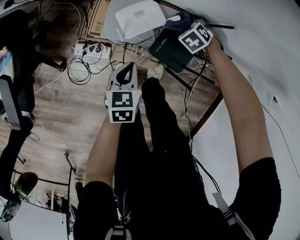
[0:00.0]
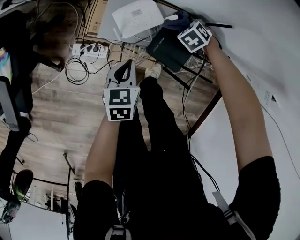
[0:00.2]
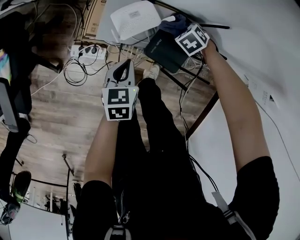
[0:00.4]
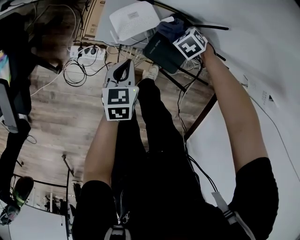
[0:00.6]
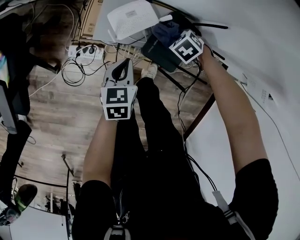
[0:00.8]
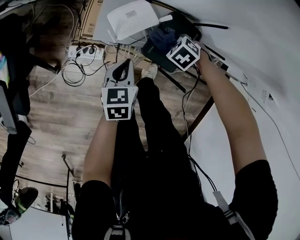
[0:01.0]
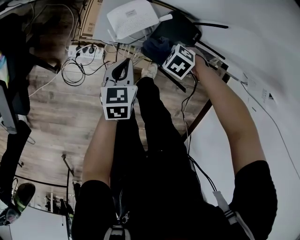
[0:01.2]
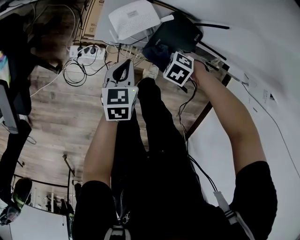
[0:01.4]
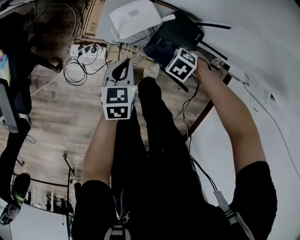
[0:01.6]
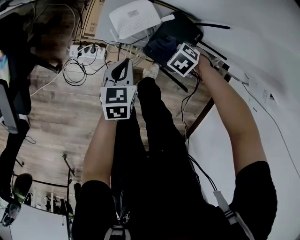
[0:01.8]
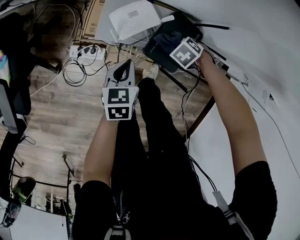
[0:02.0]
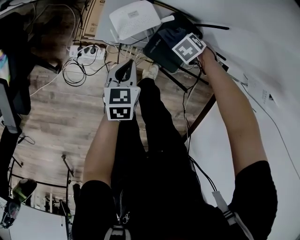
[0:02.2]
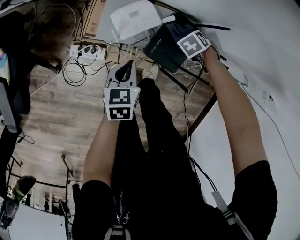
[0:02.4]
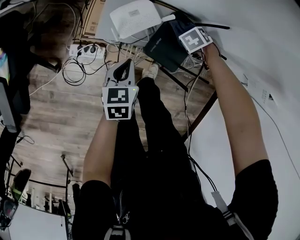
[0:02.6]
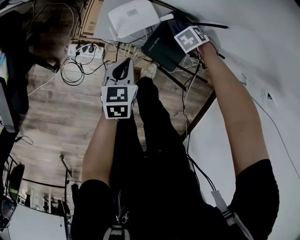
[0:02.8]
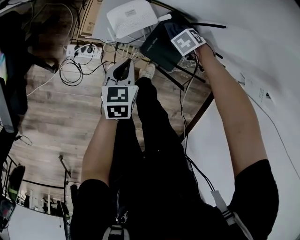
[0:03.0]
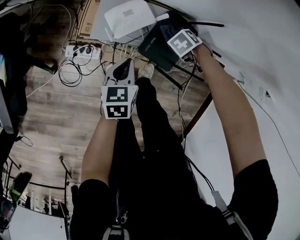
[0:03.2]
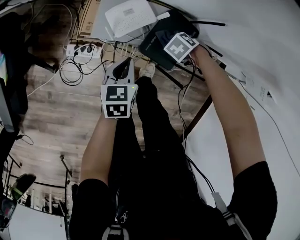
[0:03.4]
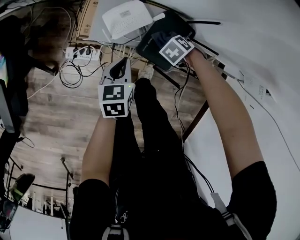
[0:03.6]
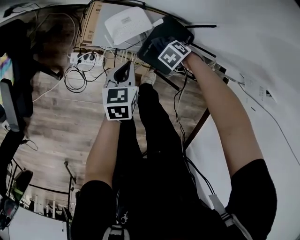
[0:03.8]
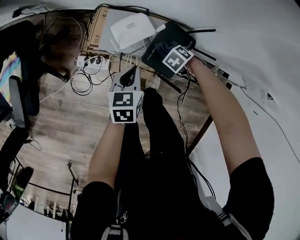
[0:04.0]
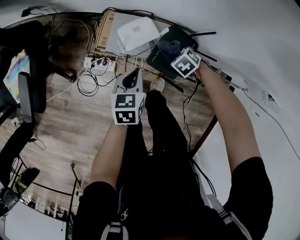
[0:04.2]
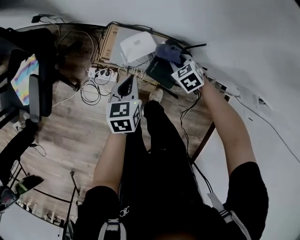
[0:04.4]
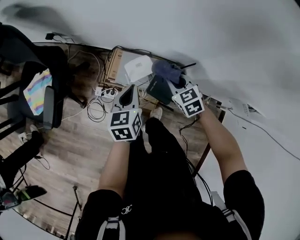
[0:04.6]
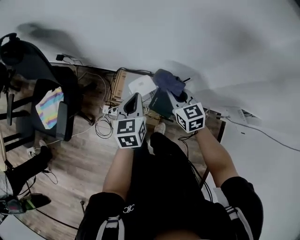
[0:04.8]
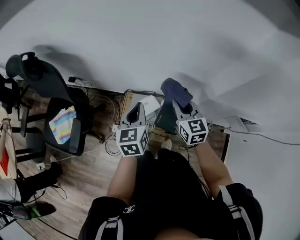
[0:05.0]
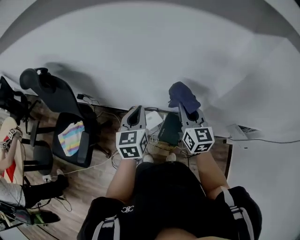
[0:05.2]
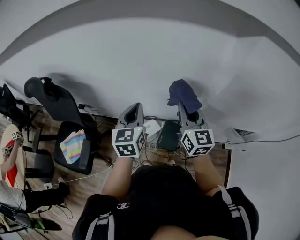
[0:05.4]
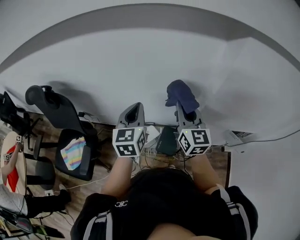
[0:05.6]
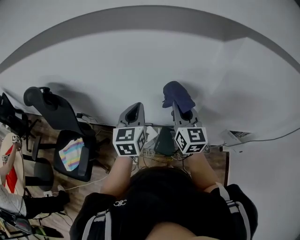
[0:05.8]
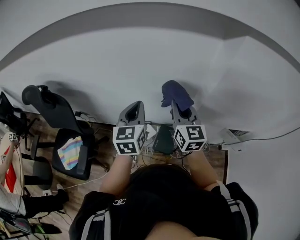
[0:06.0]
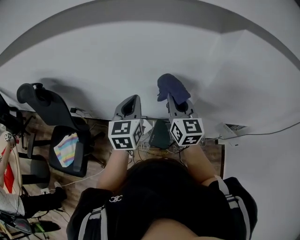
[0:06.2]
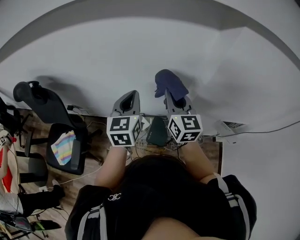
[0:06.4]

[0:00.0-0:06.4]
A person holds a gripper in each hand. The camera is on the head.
0:00.0 to 0:01.6: The right gripper ends up some 15 cm from where it was, and swivels roughly 20 degrees.
0:01.6 to 0:03.2: The right gripper changes place by some 10 cm, and swivels approximately 20 degrees.
0:03.2 to 0:04.8: The grippers both shift upward by some 40 cm. The left gripper swivels about 20 degrees, while the right gripper angles its fingers upward, by some 40 degrees.
0:04.8 to 0:06.4: The grippers both shift upward by approximately 30 cm. The left gripper rotates approximately 30 degrees. Meanwhile the right gripper tilts its fingers some 30 degrees upward.

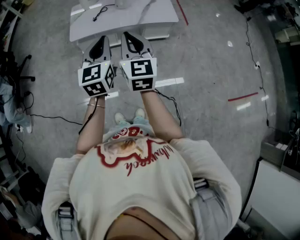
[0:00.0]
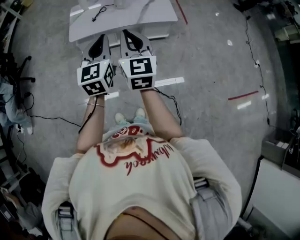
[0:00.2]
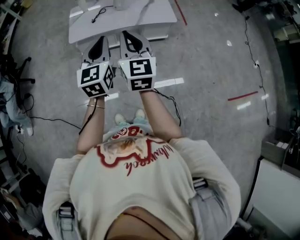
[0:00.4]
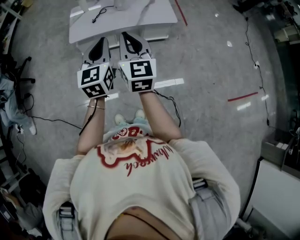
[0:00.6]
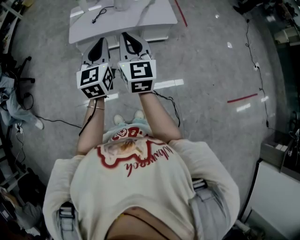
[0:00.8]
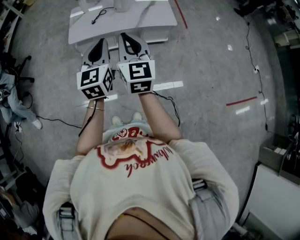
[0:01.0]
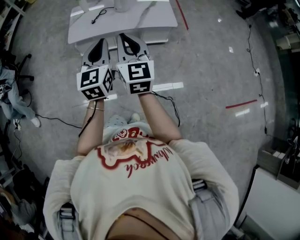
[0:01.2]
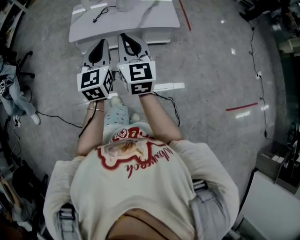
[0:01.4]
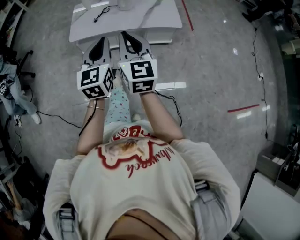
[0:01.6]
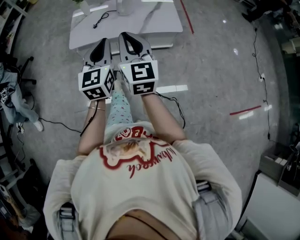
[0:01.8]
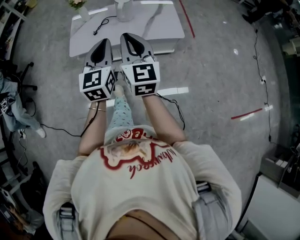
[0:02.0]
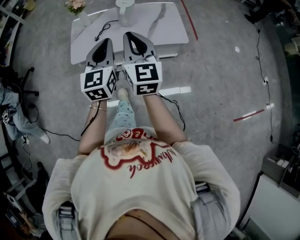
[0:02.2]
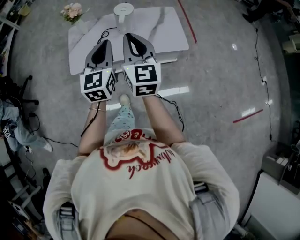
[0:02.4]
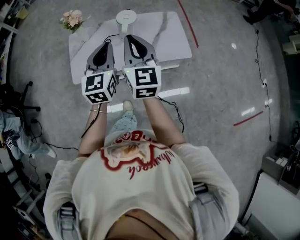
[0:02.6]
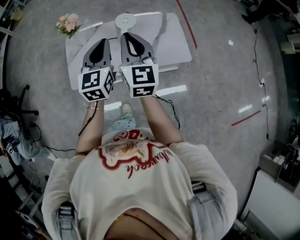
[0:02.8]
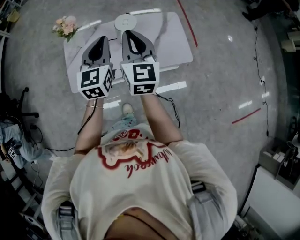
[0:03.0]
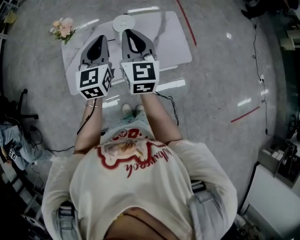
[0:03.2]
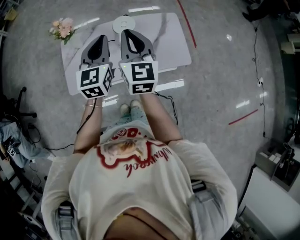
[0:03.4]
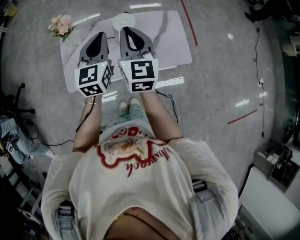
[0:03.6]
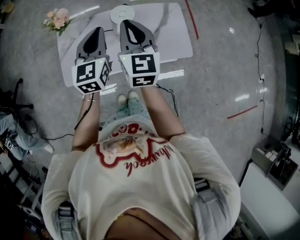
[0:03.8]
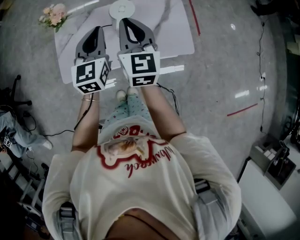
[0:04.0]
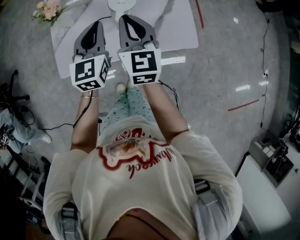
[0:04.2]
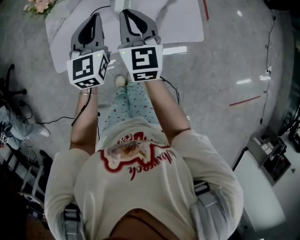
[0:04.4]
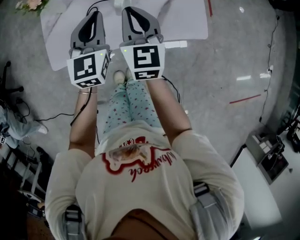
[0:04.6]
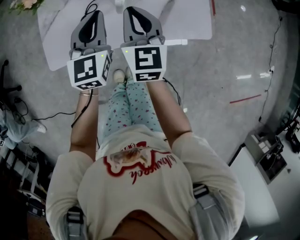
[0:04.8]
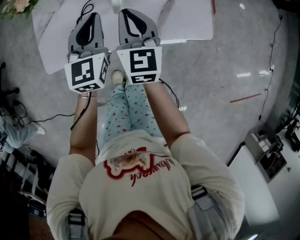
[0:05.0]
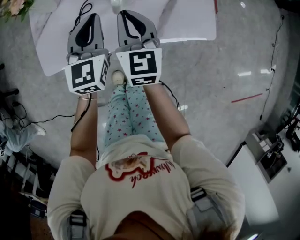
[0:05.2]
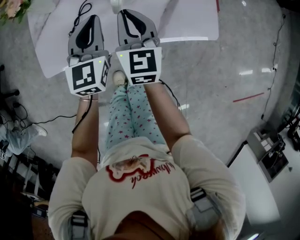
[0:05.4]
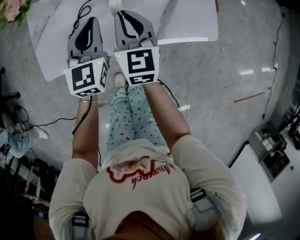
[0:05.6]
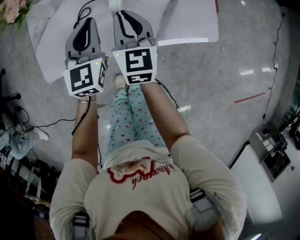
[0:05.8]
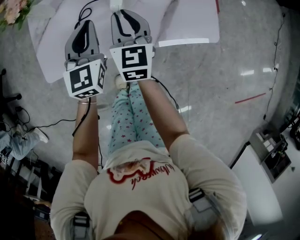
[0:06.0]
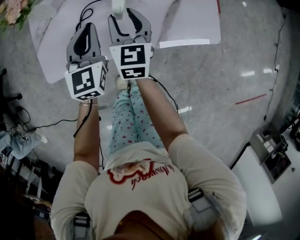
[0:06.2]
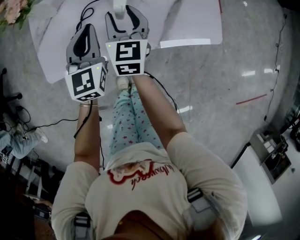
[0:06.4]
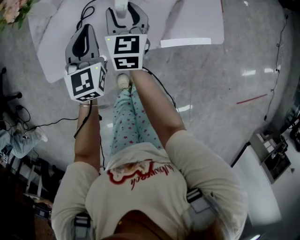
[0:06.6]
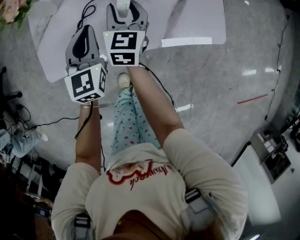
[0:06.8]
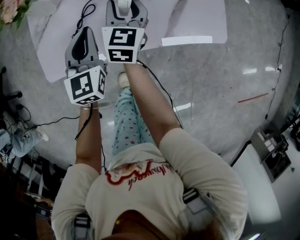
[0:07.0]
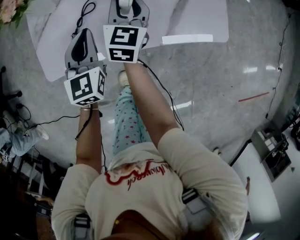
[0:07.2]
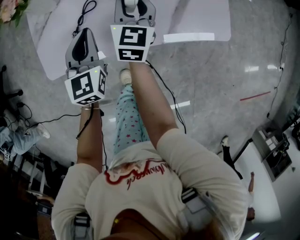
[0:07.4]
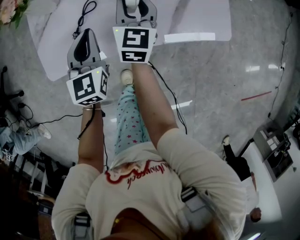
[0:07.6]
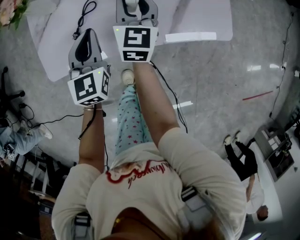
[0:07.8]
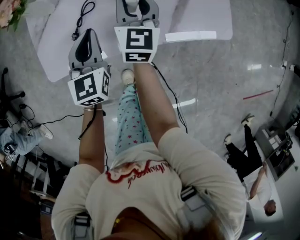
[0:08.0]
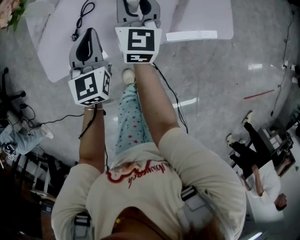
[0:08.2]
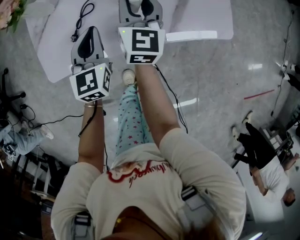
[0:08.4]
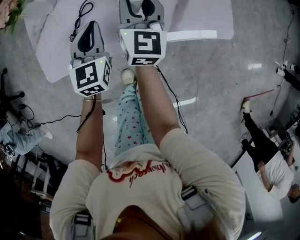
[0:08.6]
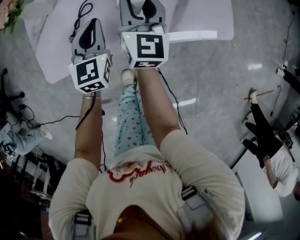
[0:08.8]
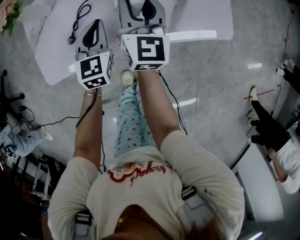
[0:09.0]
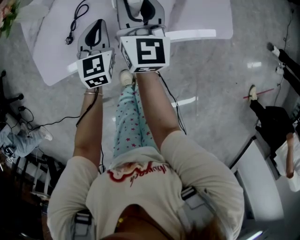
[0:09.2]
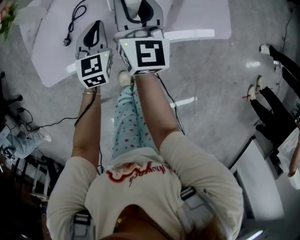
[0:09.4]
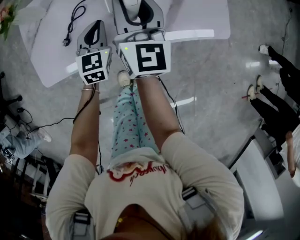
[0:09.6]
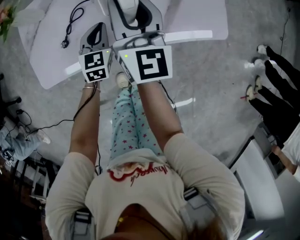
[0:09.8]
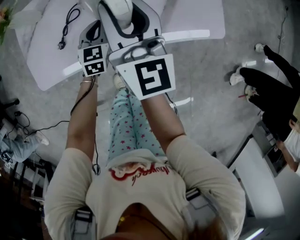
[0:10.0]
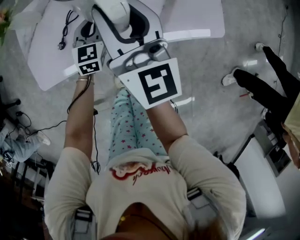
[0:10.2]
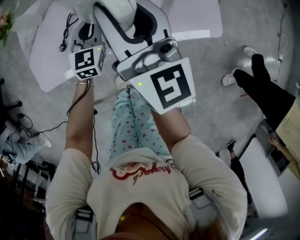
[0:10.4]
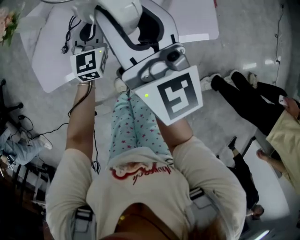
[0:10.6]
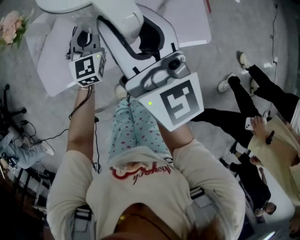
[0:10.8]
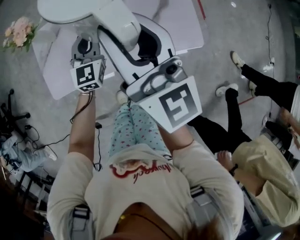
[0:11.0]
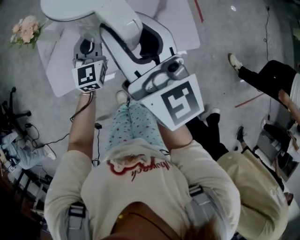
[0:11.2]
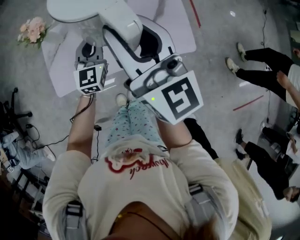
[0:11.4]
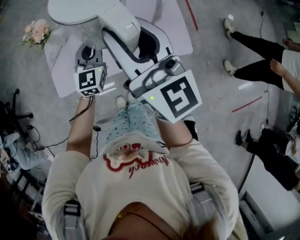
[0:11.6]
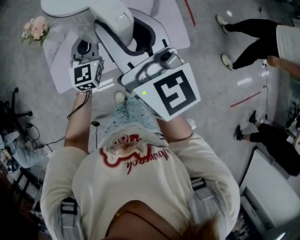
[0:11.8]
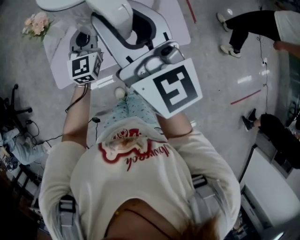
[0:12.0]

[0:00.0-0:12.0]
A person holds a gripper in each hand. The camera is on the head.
0:00.0 to 0:01.6: The right gripper changes place by roughly 5 cm, while the left gripper shifts by approximately 5 cm.
0:01.6 to 0:03.0: The pair of grippers is taken forward, roughly 40 cm.
0:03.0 to 0:04.4: Both grippers travel together downward and forward, approximately 15 cm.
0:04.4 to 0:06.0: Both grippers move downward, approximately 15 cm.
0:06.0 to 0:07.6: The right gripper shifts by about 5 cm. Meanwhile the left gripper changes place by about 5 cm.
0:07.6 to 0:09.0: The left gripper moves downward, about 5 cm.
0:09.0 to 0:10.4: The right gripper travels upward by roughly 15 cm; the left gripper goes downward and returns, approximately 10 cm each way.
0:10.4 to 0:12.0: Both grippers travel together upward, about 30 cm.

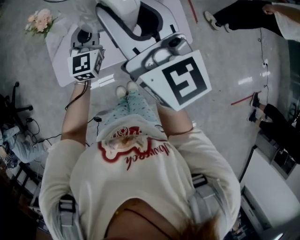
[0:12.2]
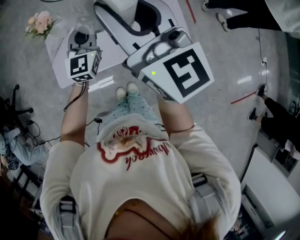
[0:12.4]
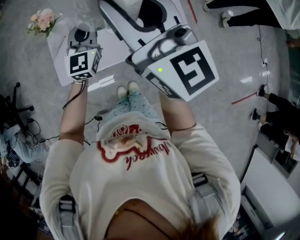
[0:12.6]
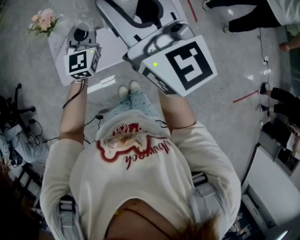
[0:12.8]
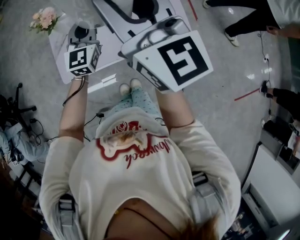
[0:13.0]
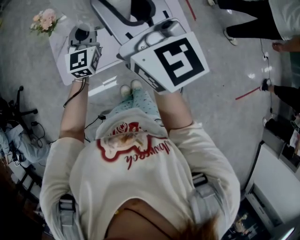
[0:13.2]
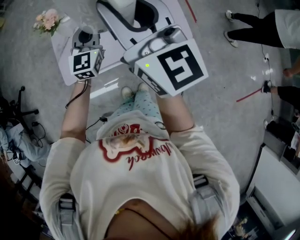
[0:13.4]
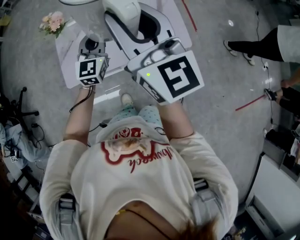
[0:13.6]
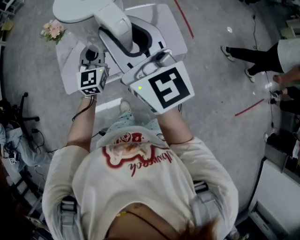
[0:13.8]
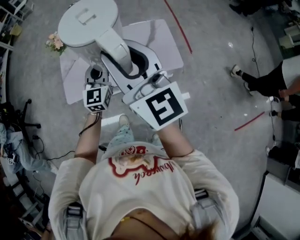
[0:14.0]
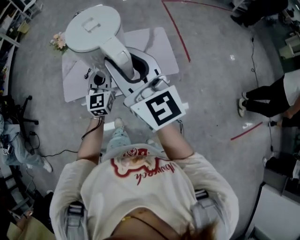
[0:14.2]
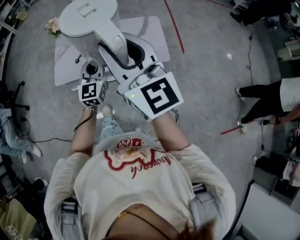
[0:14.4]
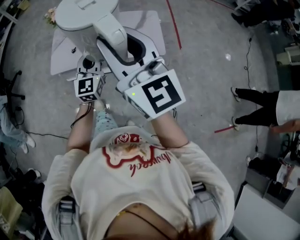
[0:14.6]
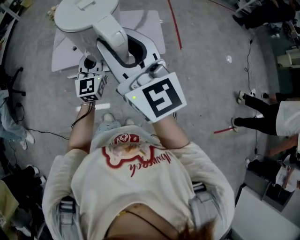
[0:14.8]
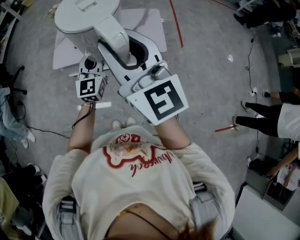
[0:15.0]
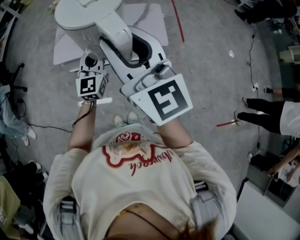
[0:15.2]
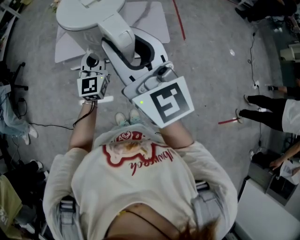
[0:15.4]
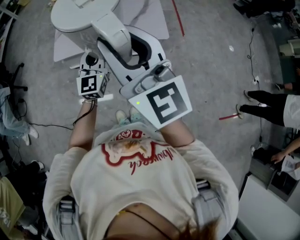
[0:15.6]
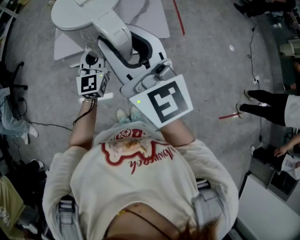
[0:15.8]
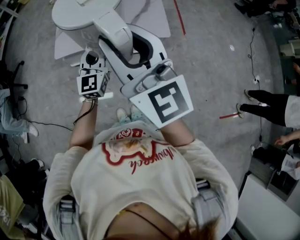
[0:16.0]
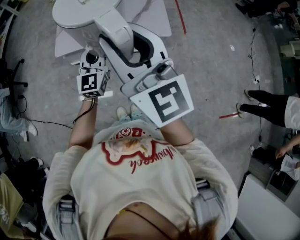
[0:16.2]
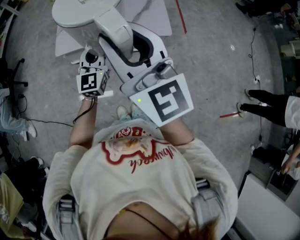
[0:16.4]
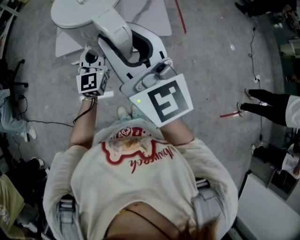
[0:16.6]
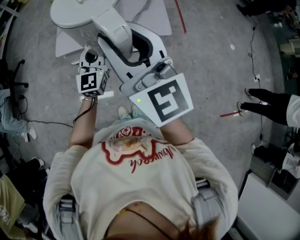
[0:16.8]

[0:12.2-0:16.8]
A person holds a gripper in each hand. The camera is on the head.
0:12.2 to 0:13.8: The grippers both shift backward by some 10 cm.
0:13.8 to 0:15.2: Both grippers move backward, approximately 30 cm.
0:15.2 to 0:16.8: There are only small adjustments of the grippers.

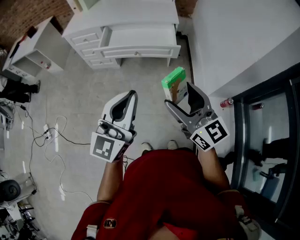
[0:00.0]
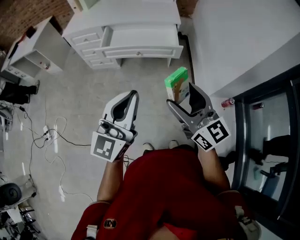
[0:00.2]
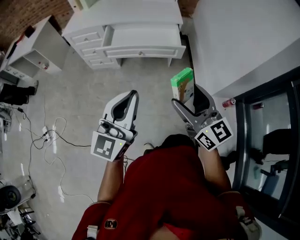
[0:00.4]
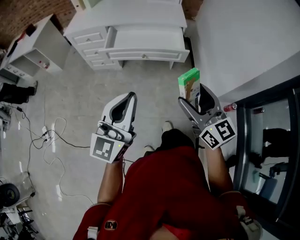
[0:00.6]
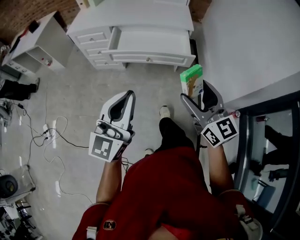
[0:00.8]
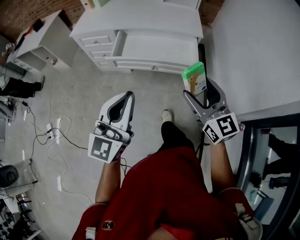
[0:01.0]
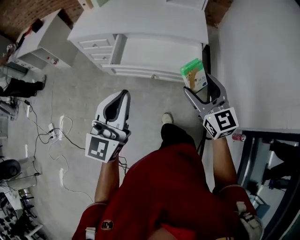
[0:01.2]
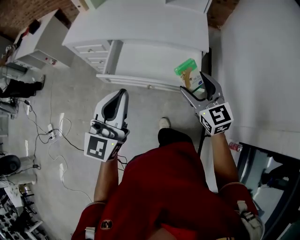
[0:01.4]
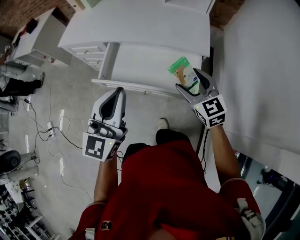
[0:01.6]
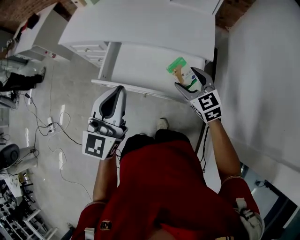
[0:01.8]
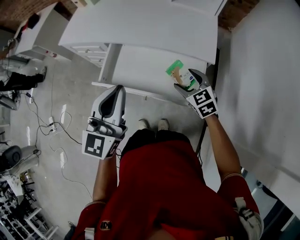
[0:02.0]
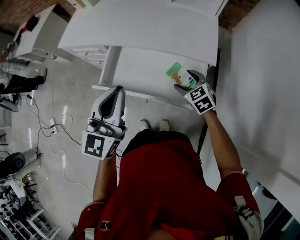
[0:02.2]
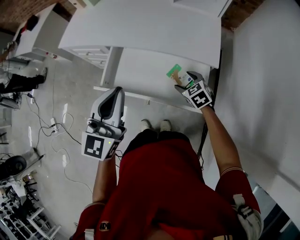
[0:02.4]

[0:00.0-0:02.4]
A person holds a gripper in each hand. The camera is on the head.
0:00.0 to 0:01.2: The two grippers go roughly 30 cm forward.
0:01.2 to 0:02.4: The left gripper is displaced forward by some 25 cm. Meanwhile the right gripper goes roughly 35 cm forward and downward, and tilts its fingers approximately 40 degrees downward.
